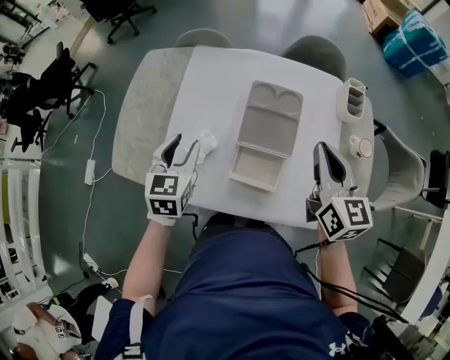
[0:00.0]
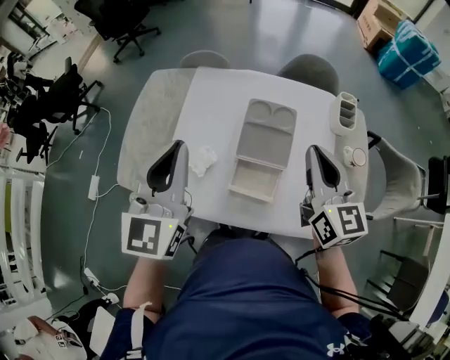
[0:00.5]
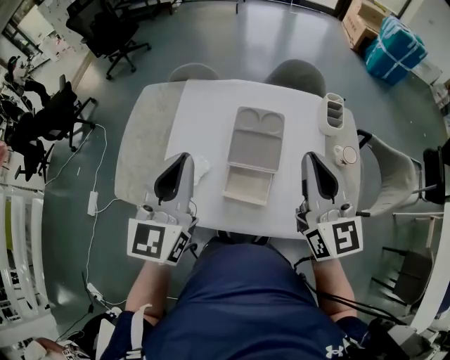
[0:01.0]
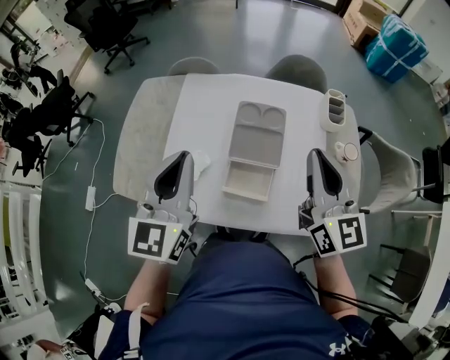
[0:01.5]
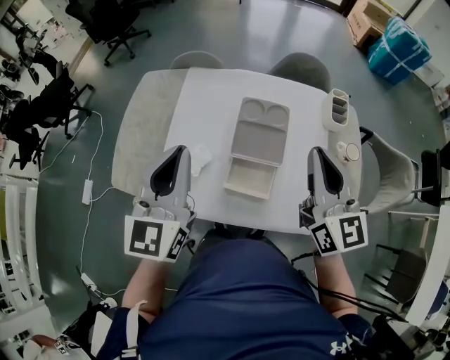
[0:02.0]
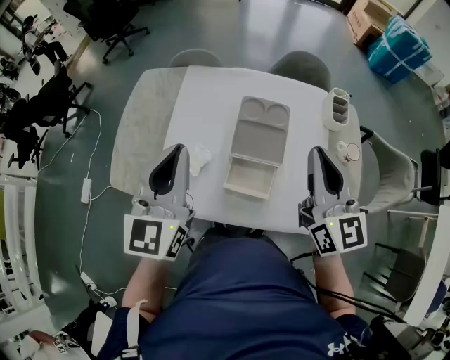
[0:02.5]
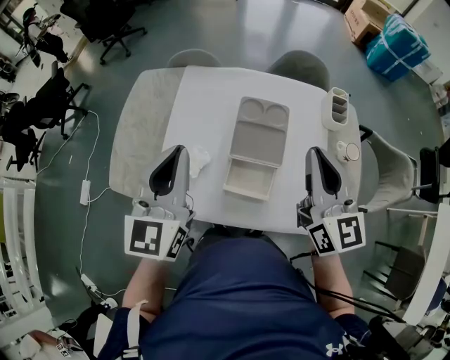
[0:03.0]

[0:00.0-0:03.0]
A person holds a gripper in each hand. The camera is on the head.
0:00.0 to 0:01.5: The right gripper is displaced upward by roughly 10 cm. The left gripper travels upward by roughly 20 cm, rotates approximately 30 degrees, and closes.
0:01.5 to 0:03.0: The grippers make only small movements.

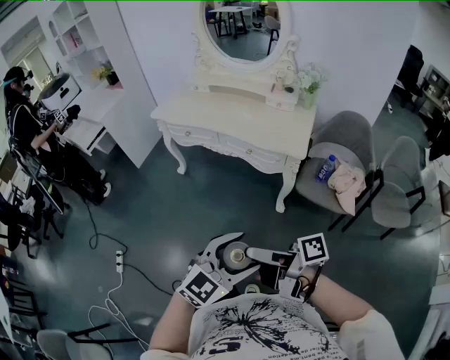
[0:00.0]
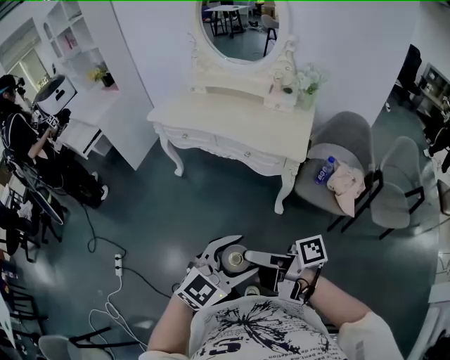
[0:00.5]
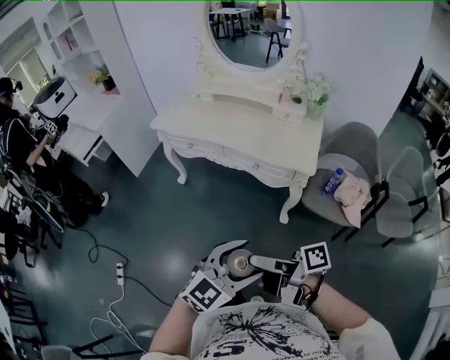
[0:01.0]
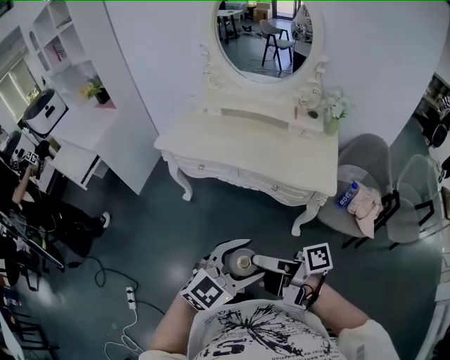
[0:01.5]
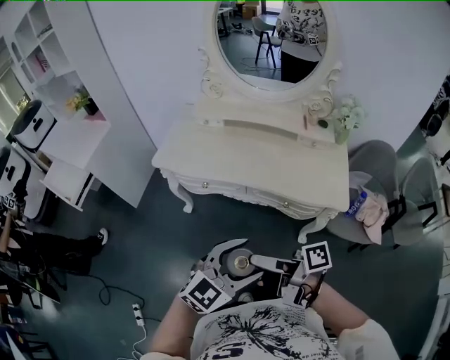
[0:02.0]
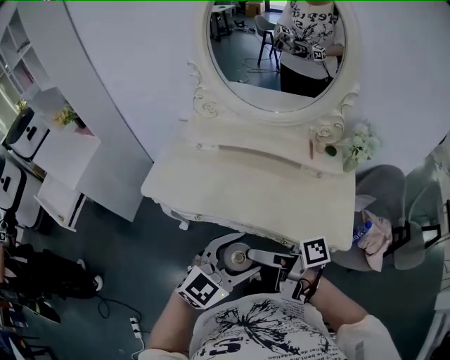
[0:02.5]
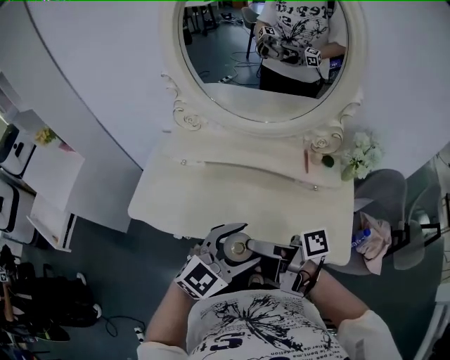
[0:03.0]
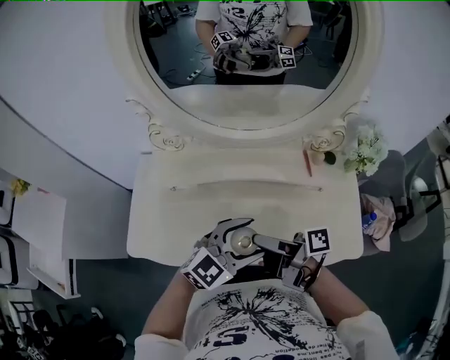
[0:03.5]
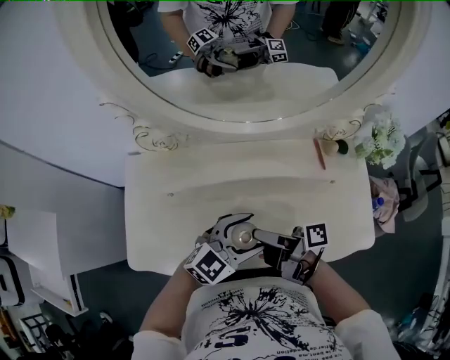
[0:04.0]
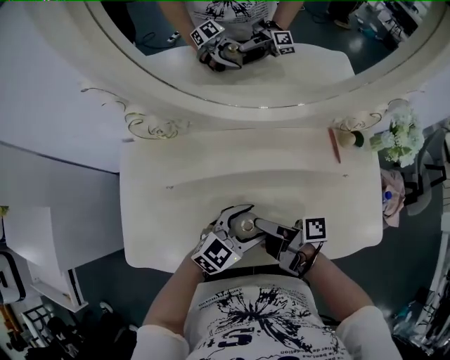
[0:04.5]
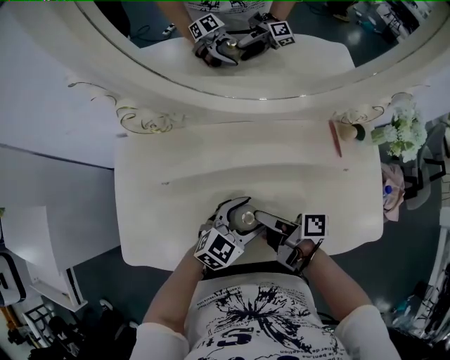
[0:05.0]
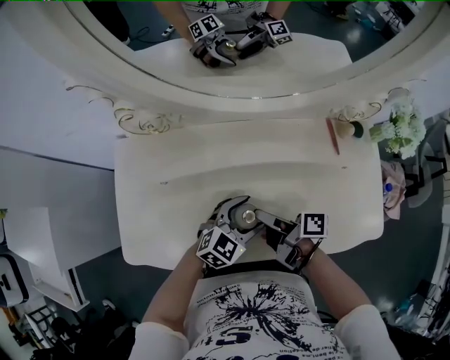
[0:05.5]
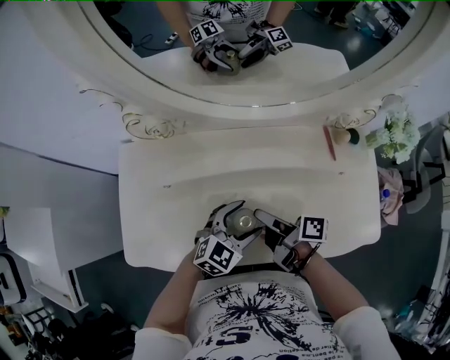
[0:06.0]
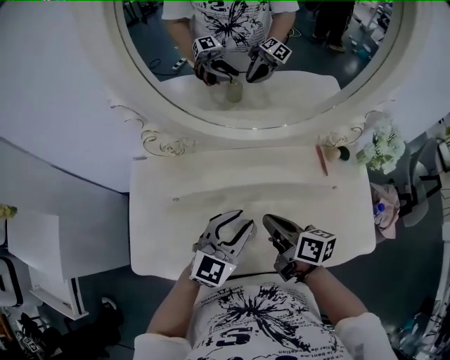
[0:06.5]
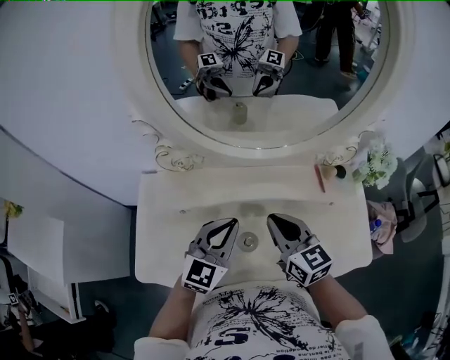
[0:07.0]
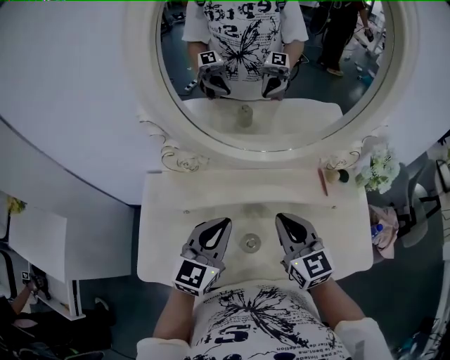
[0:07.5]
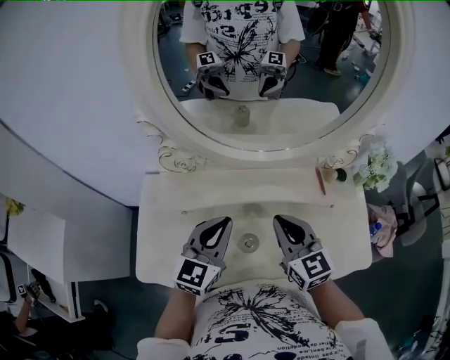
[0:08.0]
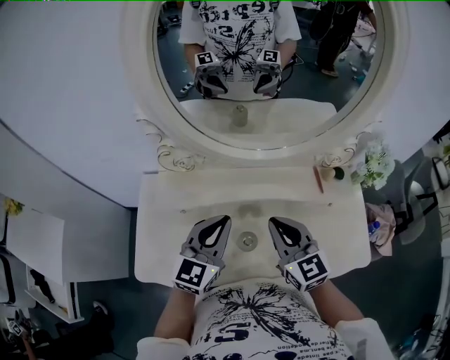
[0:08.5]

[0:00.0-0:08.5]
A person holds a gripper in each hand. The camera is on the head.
0:00.0 to 0:02.0: The left gripper moves about 40 cm.
0:02.0 to 0:04.0: The left gripper ends up approximately 50 cm from where it was, and rotates about 20 degrees.
0:04.0 to 0:06.5: The left gripper travels downward and back again, about 10 cm each way, changes its angle by roughly 20 degrees, and closes up.
0:06.5 to 0:08.5: The left gripper is displaced upward by roughly 5 cm, and closes.

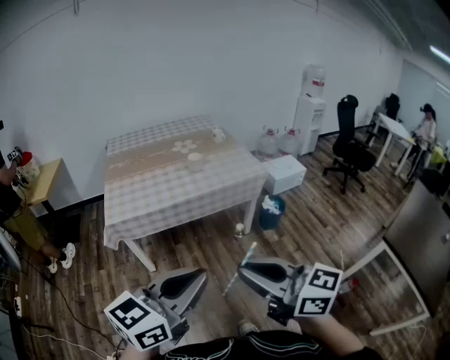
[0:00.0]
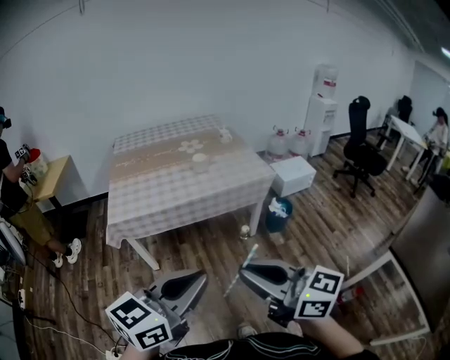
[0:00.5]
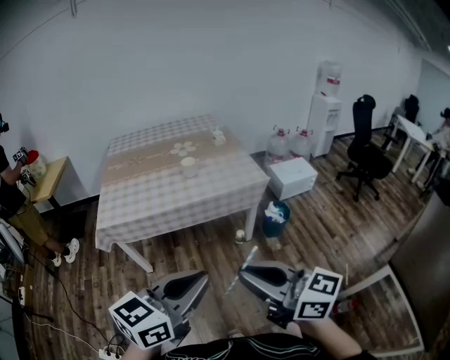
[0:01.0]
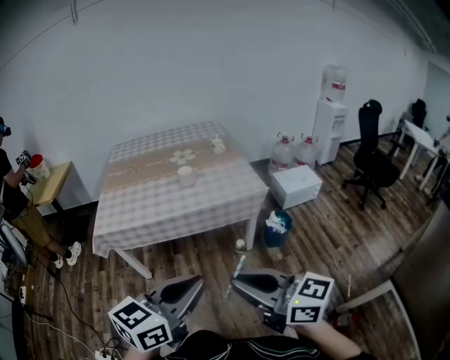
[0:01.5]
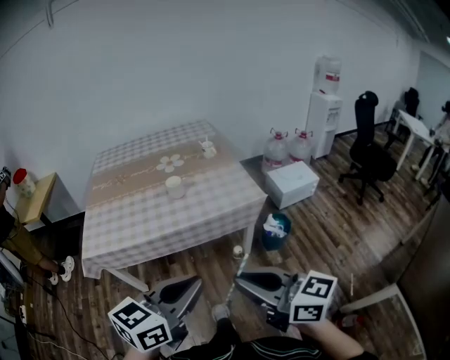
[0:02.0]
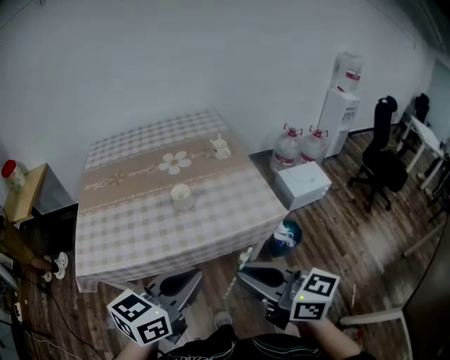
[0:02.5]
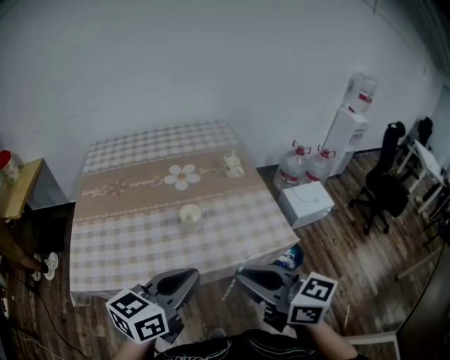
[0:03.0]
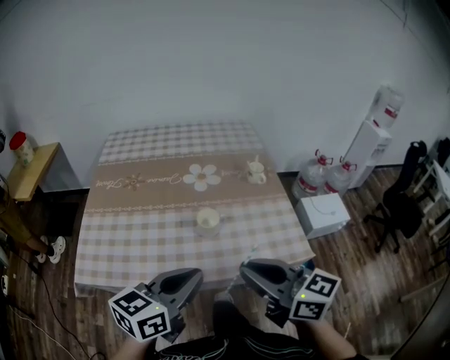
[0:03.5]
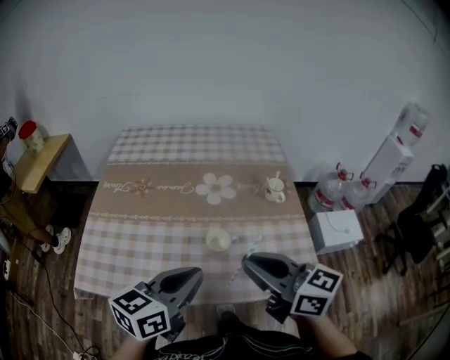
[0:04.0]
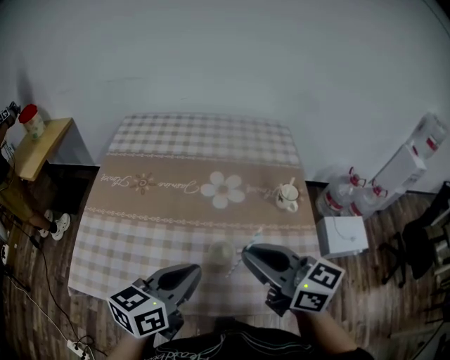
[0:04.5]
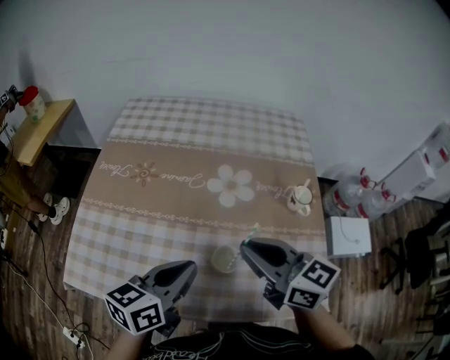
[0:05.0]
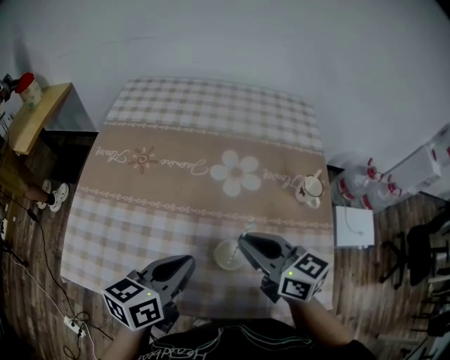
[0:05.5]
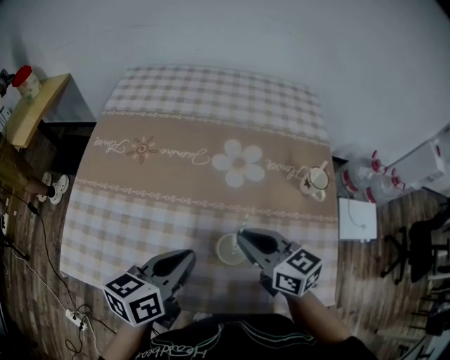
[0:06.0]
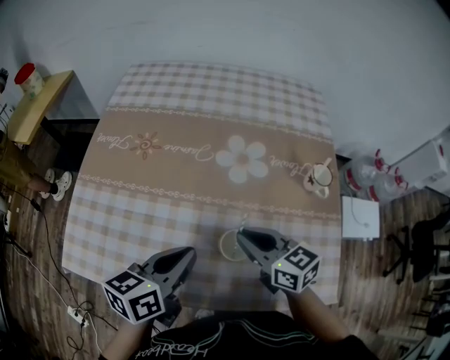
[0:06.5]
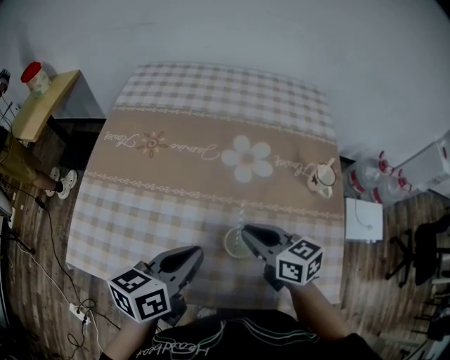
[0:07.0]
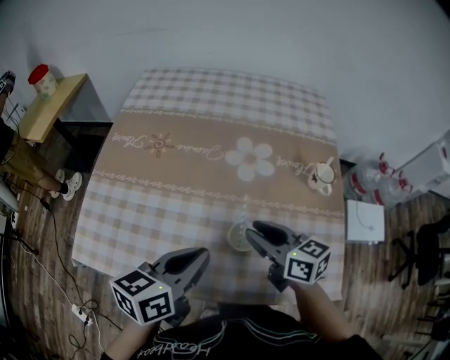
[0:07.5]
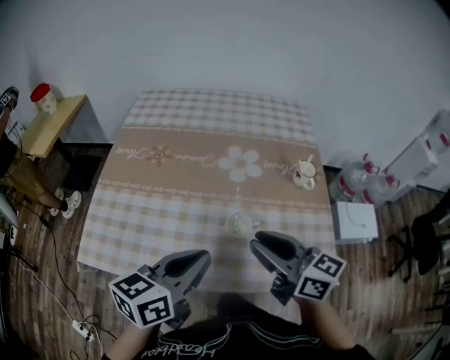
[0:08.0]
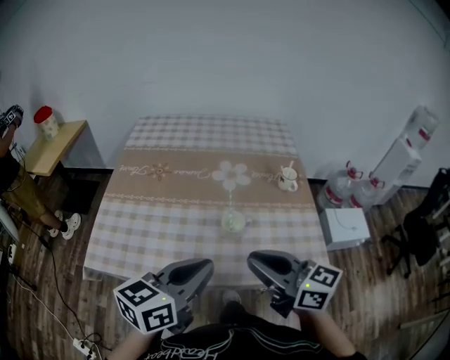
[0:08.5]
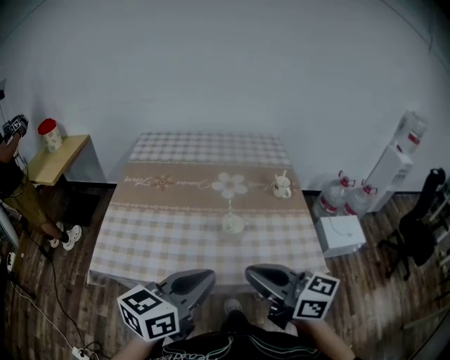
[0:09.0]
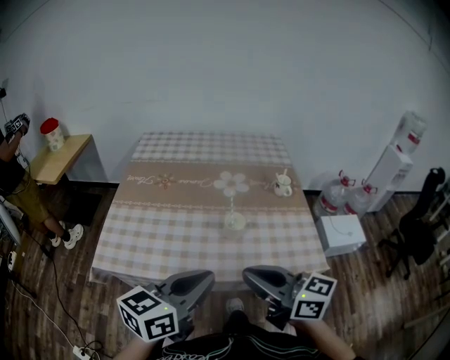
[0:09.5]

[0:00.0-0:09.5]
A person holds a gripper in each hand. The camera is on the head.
0:00.0 to 0:02.0: Both grippers travel together forward and to the right, approximately 30 cm.
0:02.0 to 0:04.0: Both grippers travel together forward, approximately 40 cm.
0:04.0 to 0:05.5: Both grippers travel together forward and downward, some 20 cm.
0:05.5 to 0:07.5: The right gripper opens.
0:07.5 to 0:09.5: The grippers both shift backward and upward by about 30 cm. The left gripper changes its angle by about 20 degrees. Meanwhile the right gripper closes its fingers.

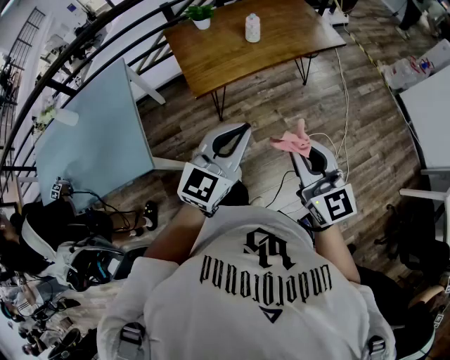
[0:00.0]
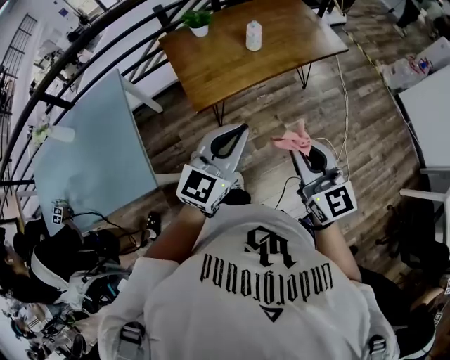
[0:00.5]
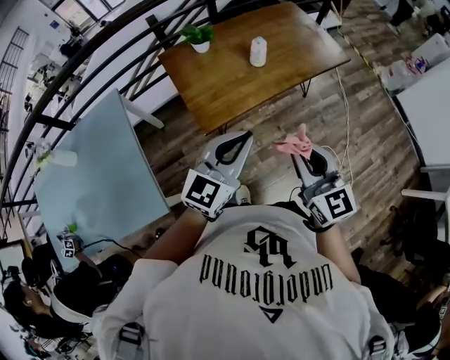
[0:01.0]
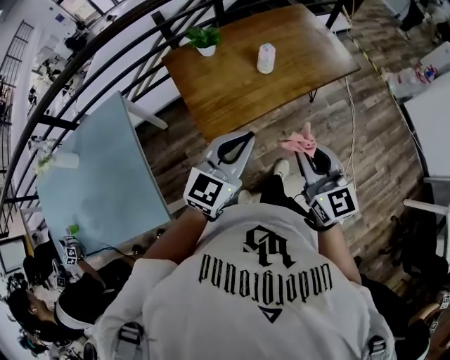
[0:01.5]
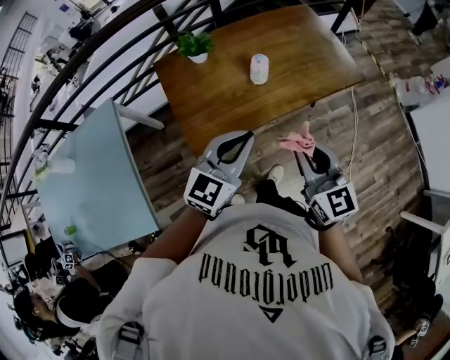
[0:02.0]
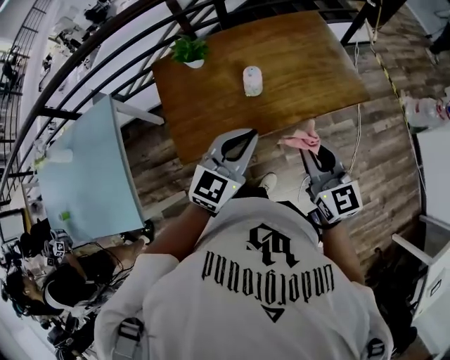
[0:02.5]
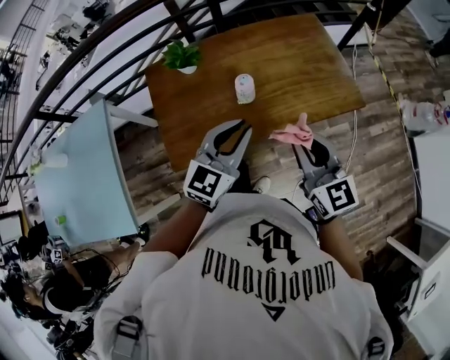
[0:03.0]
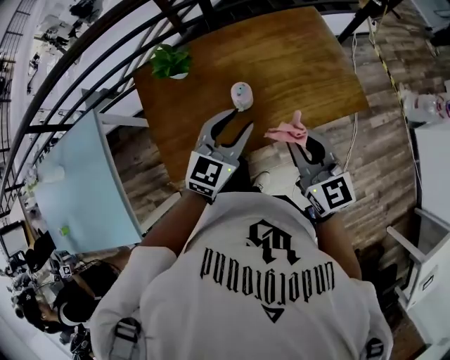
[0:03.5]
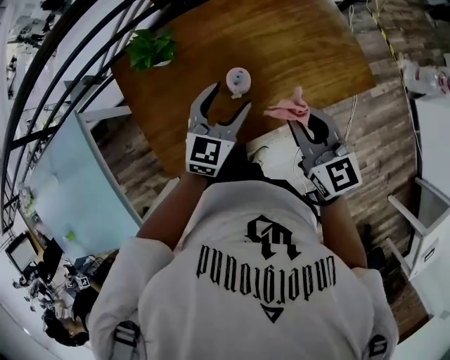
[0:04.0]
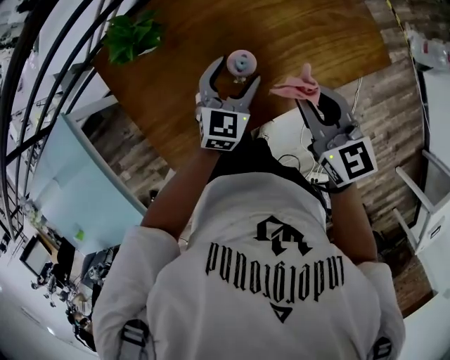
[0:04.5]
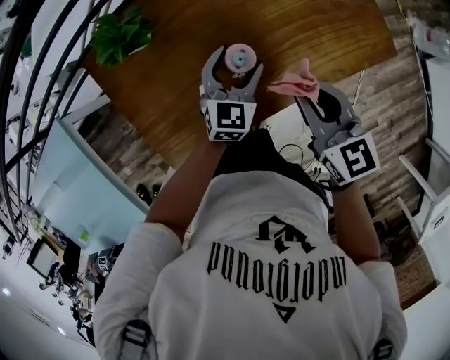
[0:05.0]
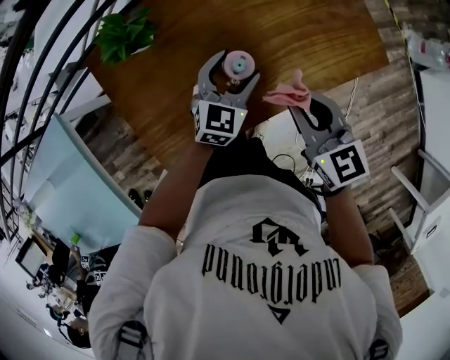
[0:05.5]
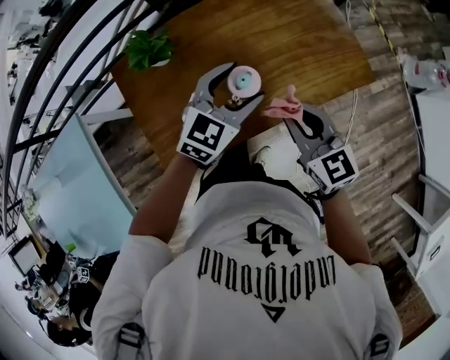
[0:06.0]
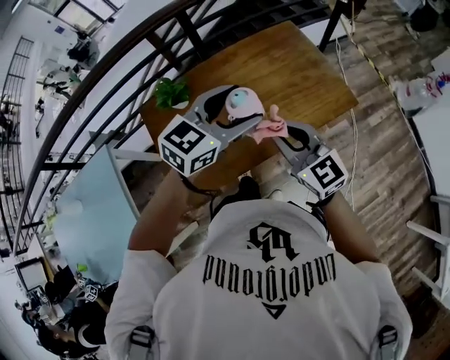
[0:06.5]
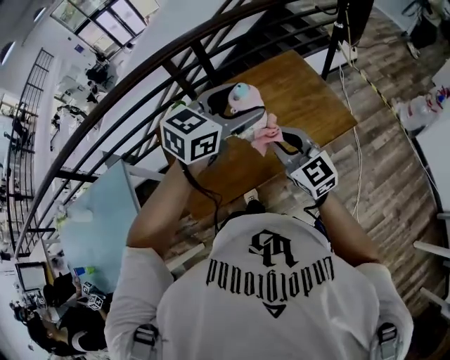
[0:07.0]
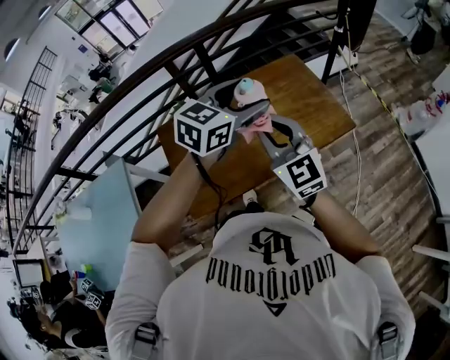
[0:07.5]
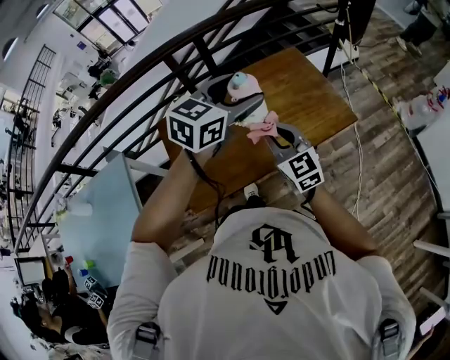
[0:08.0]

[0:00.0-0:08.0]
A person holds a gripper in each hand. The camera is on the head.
0:00.0 to 0:02.0: Both grippers travel together forward, approximately 35 cm.
0:02.0 to 0:04.0: The right gripper goes about 30 cm forward. Meanwhile the left gripper is displaced forward and downward by some 35 cm, and opens its fingers.
0:04.0 to 0:06.0: The left gripper reaches roughly 15 cm downward, then returns. Meanwhile the right gripper moves approximately 10 cm downward and comes back.
0:06.0 to 0:08.0: The right gripper shifts some 10 cm upward and backward, while the left gripper shifts roughly 25 cm upward.
